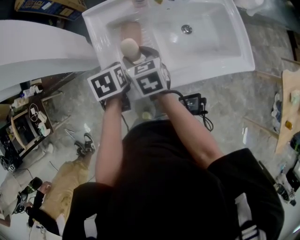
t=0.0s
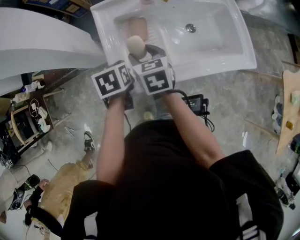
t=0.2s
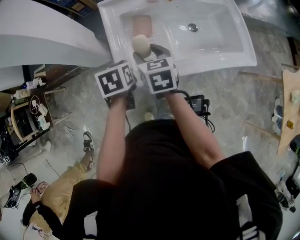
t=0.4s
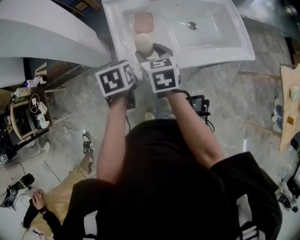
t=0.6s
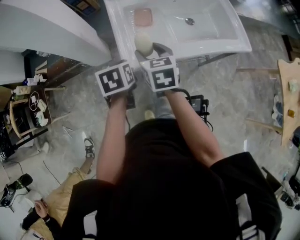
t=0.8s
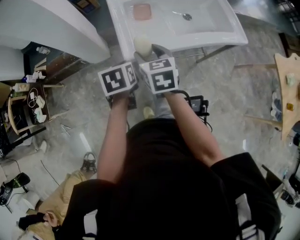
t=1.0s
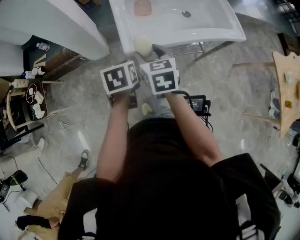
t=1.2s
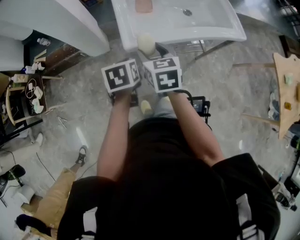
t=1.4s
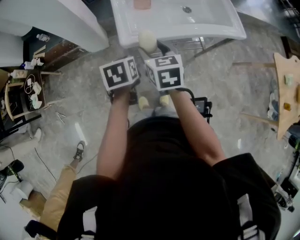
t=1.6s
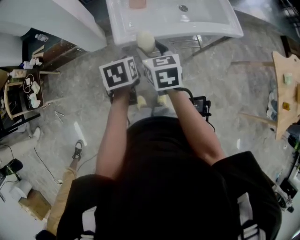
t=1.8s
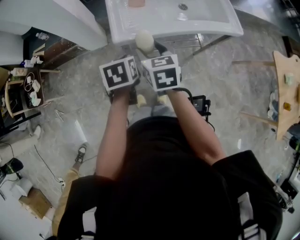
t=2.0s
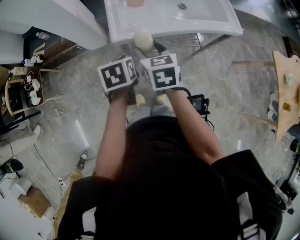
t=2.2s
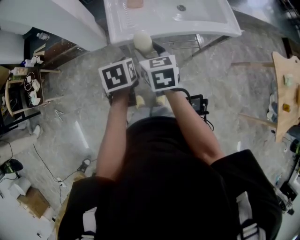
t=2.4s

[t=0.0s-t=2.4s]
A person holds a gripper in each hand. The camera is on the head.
t=0.0s to t=1.2s: The grippers both shift backward by roughly 25 cm.
t=1.2s to t=2.4s: The right gripper heads to the right, covering approximately 5 cm; the left gripper heads to the right and backward, covering about 10 cm.

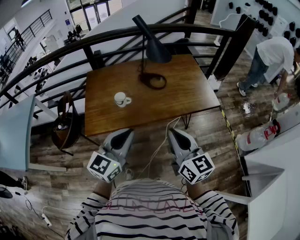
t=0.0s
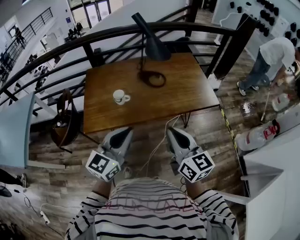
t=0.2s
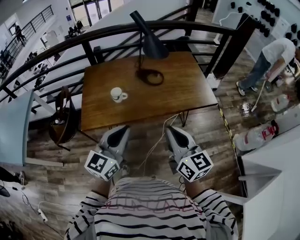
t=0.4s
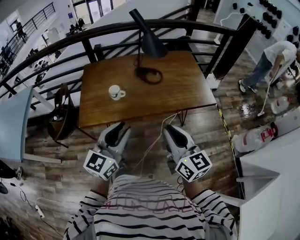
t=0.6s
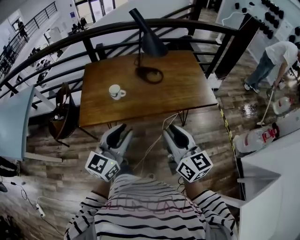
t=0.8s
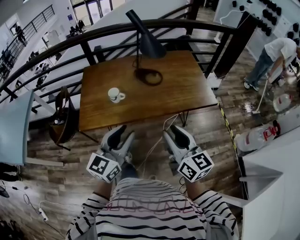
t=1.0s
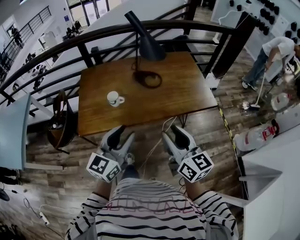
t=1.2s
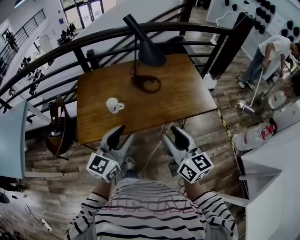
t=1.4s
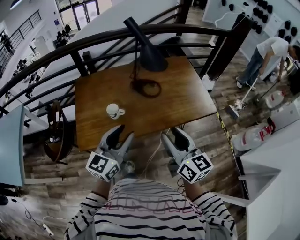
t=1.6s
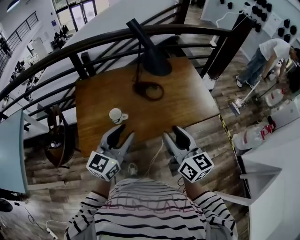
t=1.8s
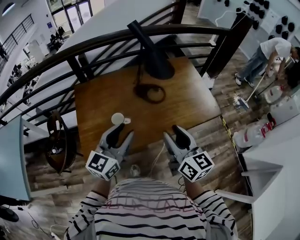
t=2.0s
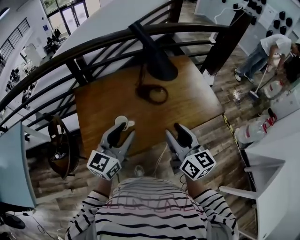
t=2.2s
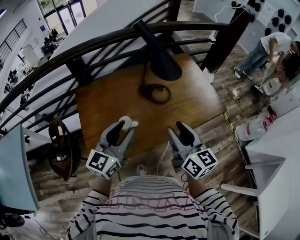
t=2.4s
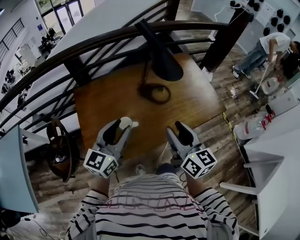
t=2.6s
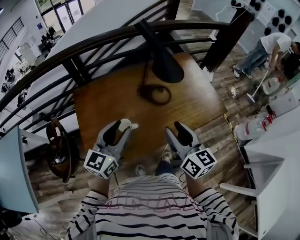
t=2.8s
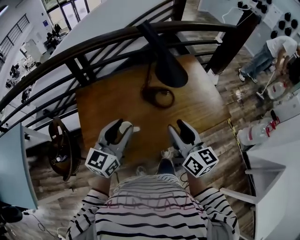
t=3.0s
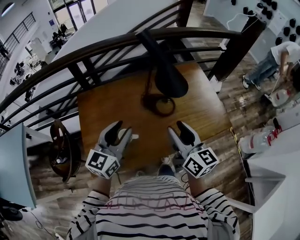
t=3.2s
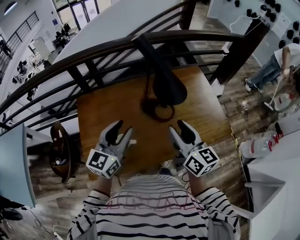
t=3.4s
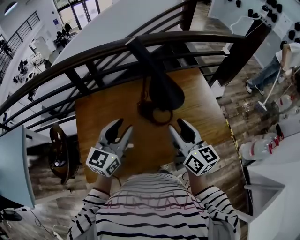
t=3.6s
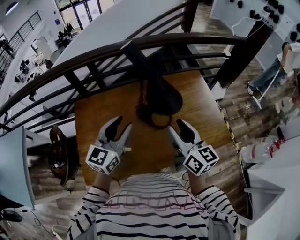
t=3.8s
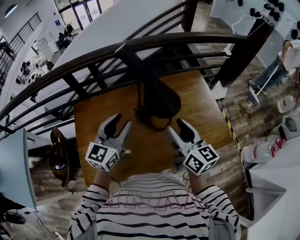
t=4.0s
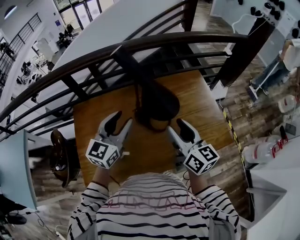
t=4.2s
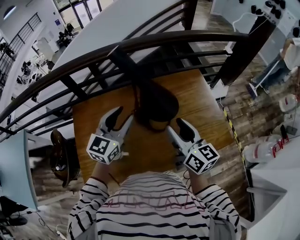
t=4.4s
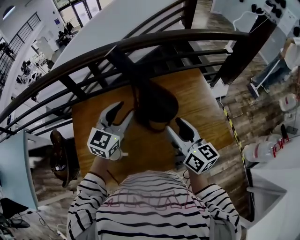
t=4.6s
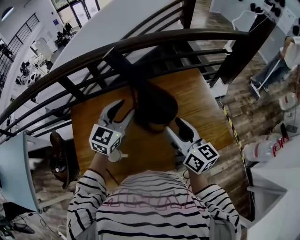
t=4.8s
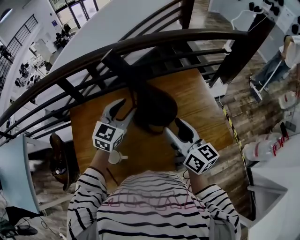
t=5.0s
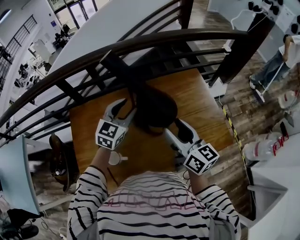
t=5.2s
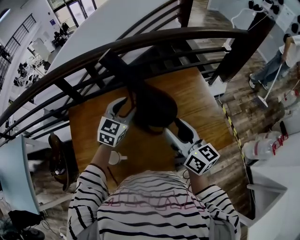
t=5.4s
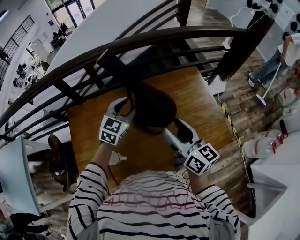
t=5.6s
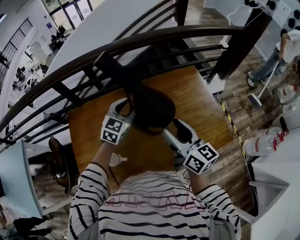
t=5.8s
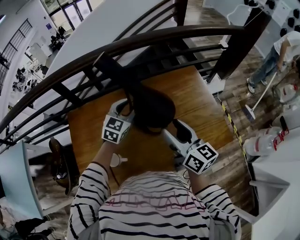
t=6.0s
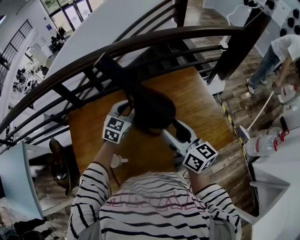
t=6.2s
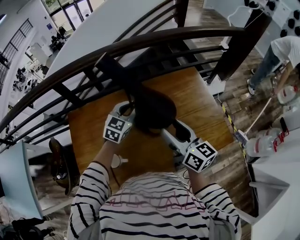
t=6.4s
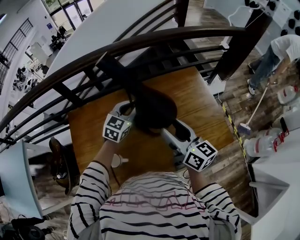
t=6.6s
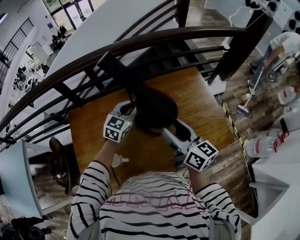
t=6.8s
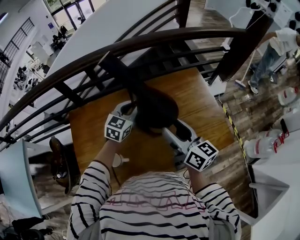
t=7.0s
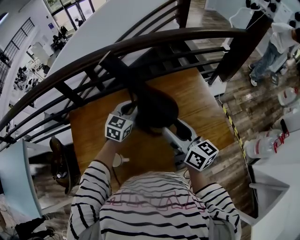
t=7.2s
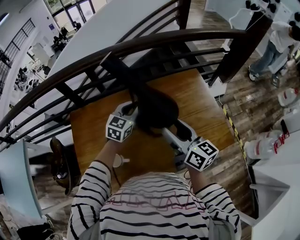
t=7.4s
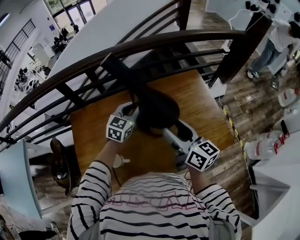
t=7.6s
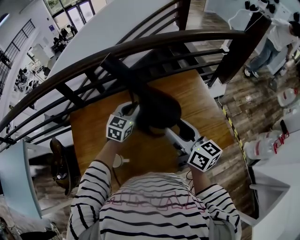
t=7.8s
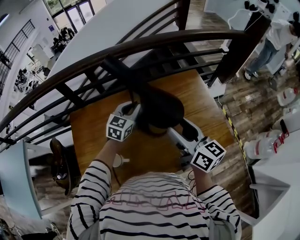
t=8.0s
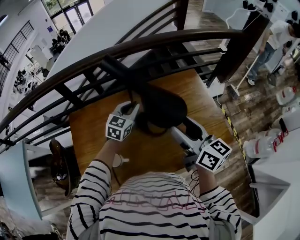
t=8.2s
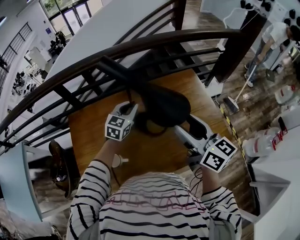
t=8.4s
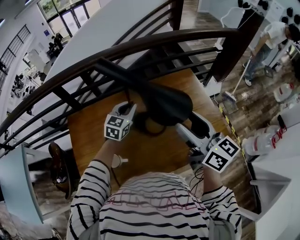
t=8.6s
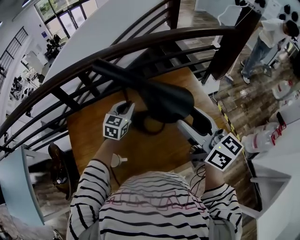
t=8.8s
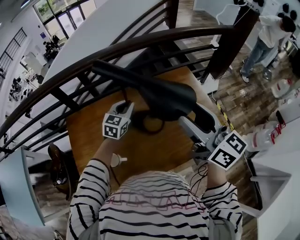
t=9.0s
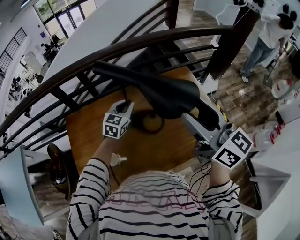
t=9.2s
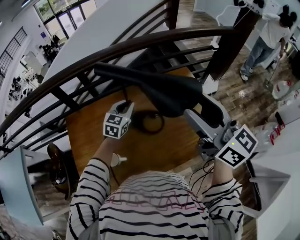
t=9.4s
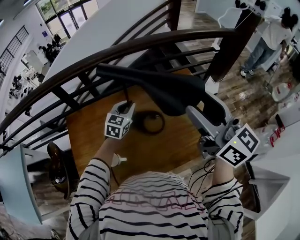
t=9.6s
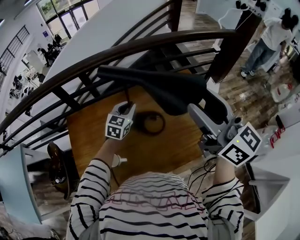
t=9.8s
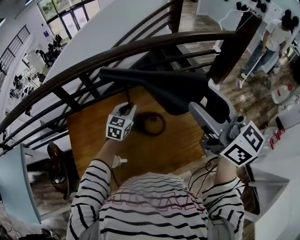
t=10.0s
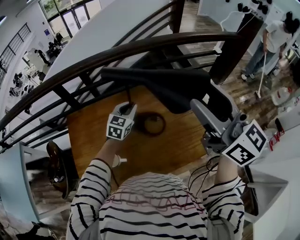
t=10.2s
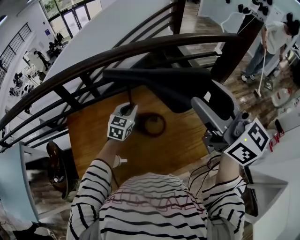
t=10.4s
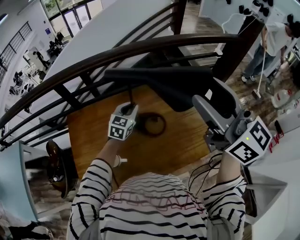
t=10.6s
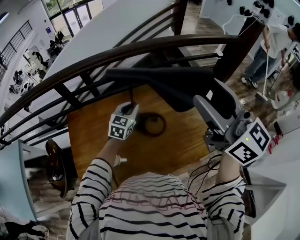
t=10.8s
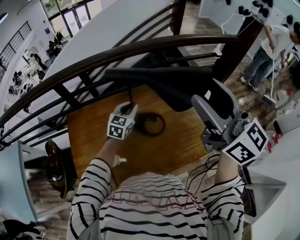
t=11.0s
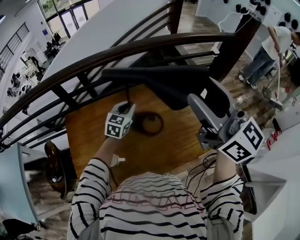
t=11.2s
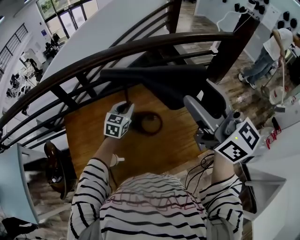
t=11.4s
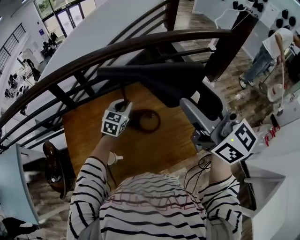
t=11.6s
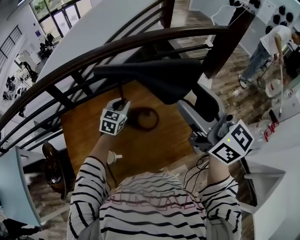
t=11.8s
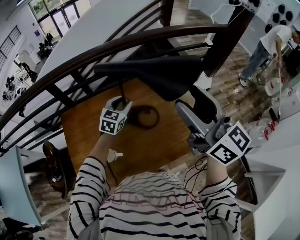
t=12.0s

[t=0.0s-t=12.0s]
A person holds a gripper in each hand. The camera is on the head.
t=0.0s to t=1.6s: The grippers both shift forward by roughly 10 cm. The left gripper opens; the right gripper opens its fingers.
t=1.6s to t=3.0s: Both grippers travel together forward and to the left, roughly 20 cm.
t=3.0s to t=4.4s: The two grippers go approximately 20 cm forward and to the right.
t=4.4s to t=6.0s: The left gripper travels forward and downward by approximately 15 cm.
t=6.0s to t=7.6s: The left gripper closes its fingers.
t=7.6s to t=9.0s: The right gripper shifts about 15 cm upward and to the right.
t=9.0s to t=10.4s: The right gripper is displaced upward by approximately 10 cm.
t=10.4s to t=12.0s: The left gripper opens up; the right gripper changes place by roughly 5 cm.

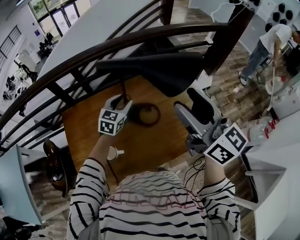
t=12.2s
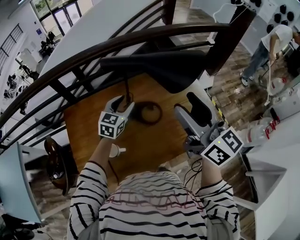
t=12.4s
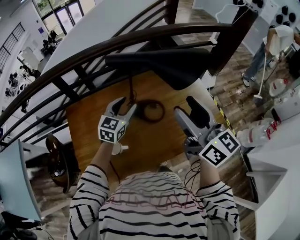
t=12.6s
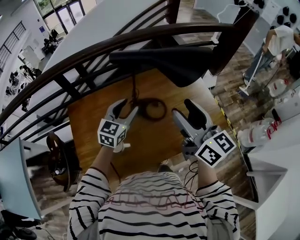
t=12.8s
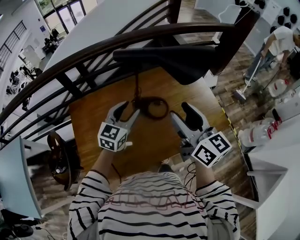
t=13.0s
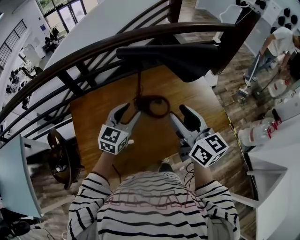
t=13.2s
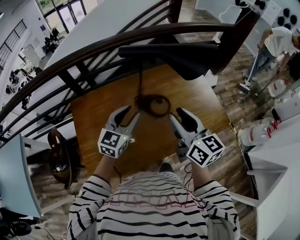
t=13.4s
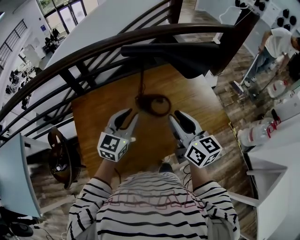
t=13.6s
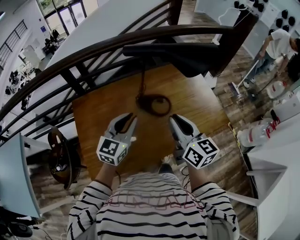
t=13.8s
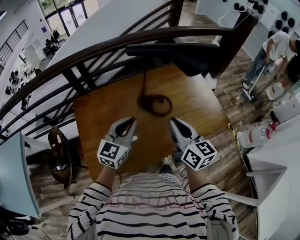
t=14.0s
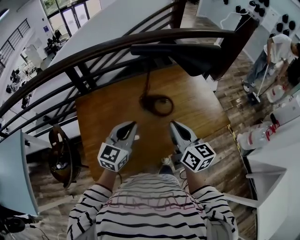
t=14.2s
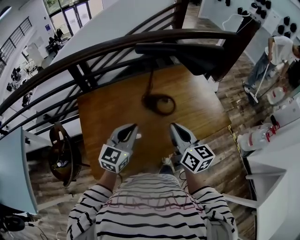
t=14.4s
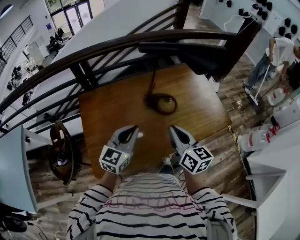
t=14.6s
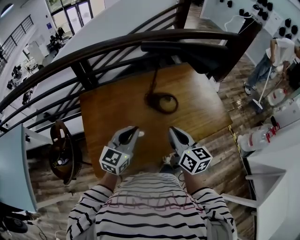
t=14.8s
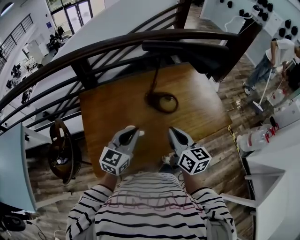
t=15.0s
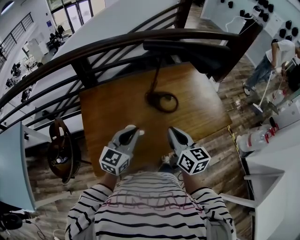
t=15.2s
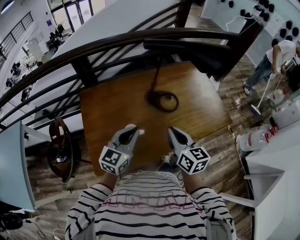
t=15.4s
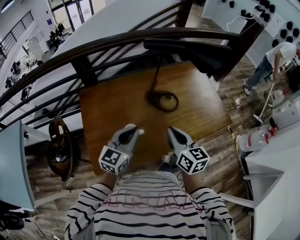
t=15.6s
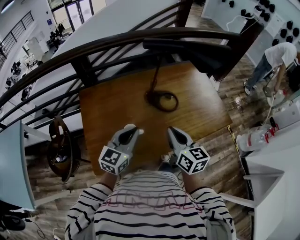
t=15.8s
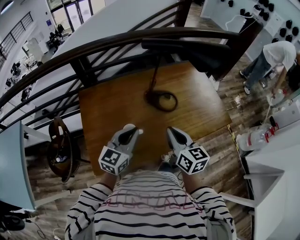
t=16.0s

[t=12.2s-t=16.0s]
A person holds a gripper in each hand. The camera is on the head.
t=12.2s to t=13.4s: The right gripper is displaced downward, to the left and backward by about 15 cm. The left gripper heads backward, covering approximately 15 cm.
t=13.4s to t=14.8s: The right gripper moves backward, downward and to the left, some 15 cm, and closes its fingers. The left gripper moves backward and to the left, about 15 cm, and closes up.
t=14.8s to t=16.0s: The grippers make only small movements.

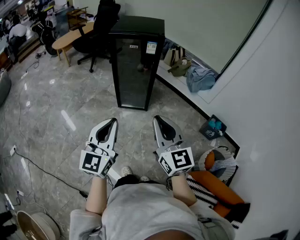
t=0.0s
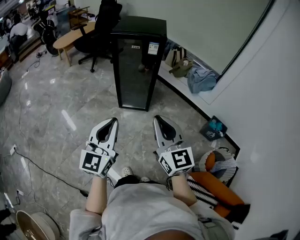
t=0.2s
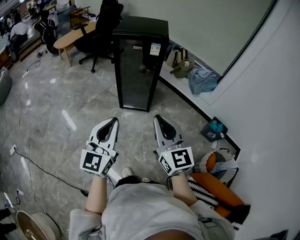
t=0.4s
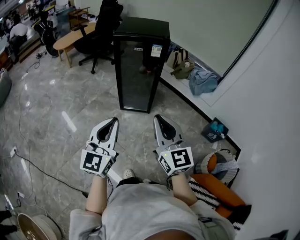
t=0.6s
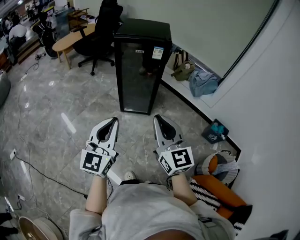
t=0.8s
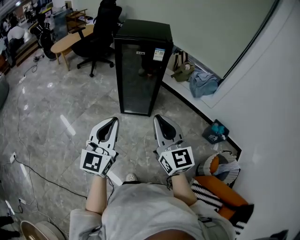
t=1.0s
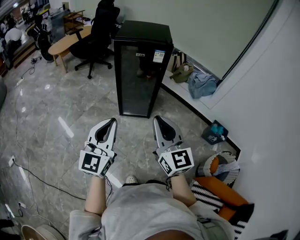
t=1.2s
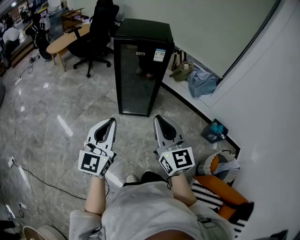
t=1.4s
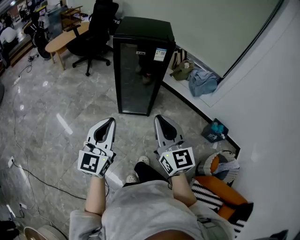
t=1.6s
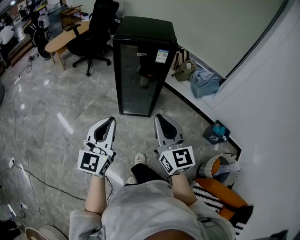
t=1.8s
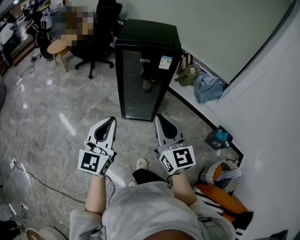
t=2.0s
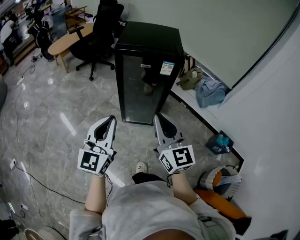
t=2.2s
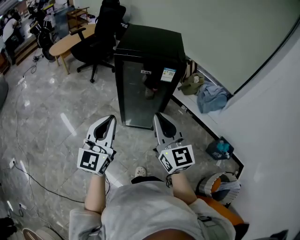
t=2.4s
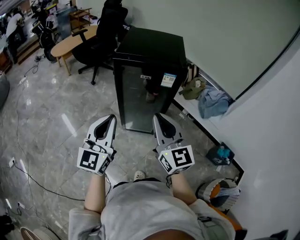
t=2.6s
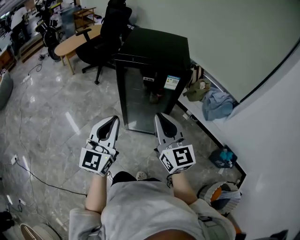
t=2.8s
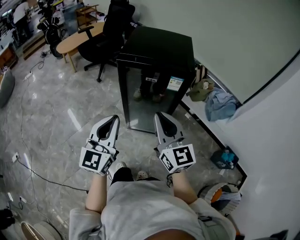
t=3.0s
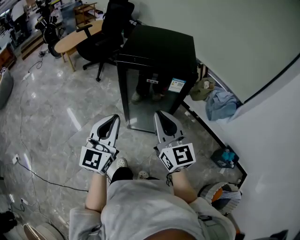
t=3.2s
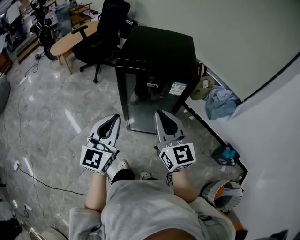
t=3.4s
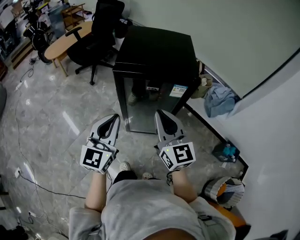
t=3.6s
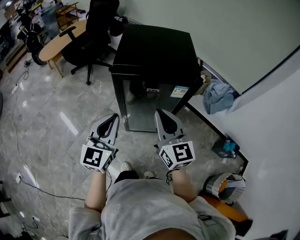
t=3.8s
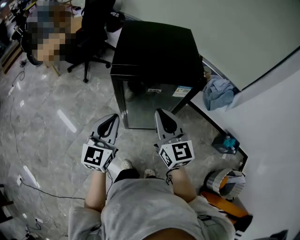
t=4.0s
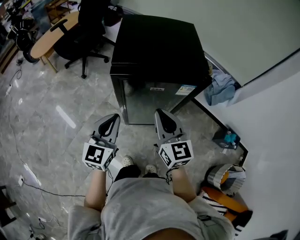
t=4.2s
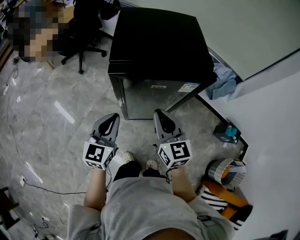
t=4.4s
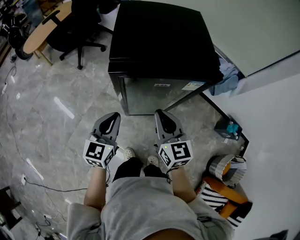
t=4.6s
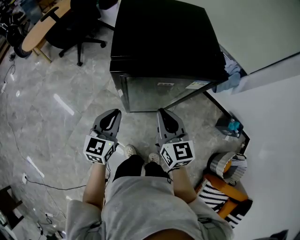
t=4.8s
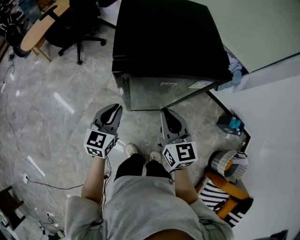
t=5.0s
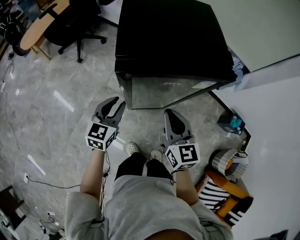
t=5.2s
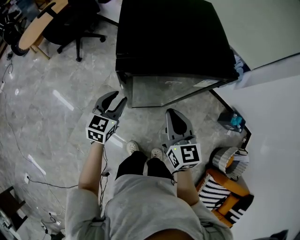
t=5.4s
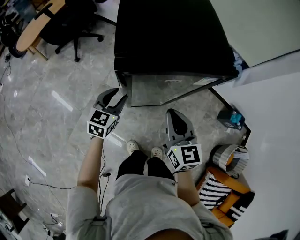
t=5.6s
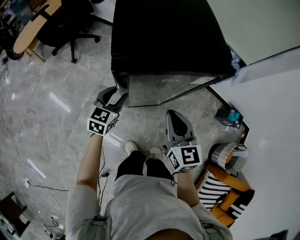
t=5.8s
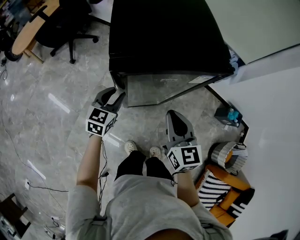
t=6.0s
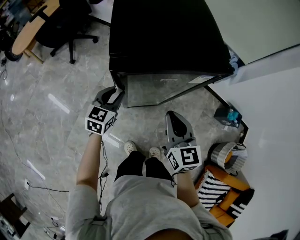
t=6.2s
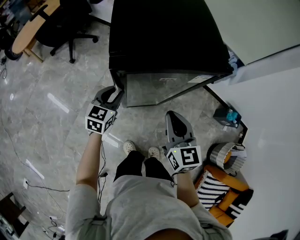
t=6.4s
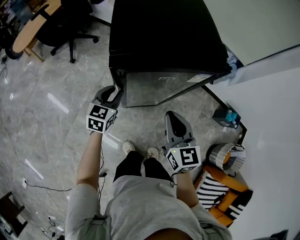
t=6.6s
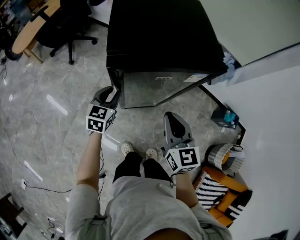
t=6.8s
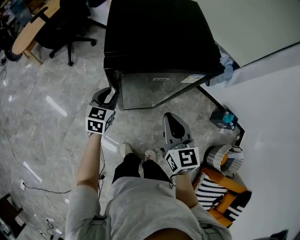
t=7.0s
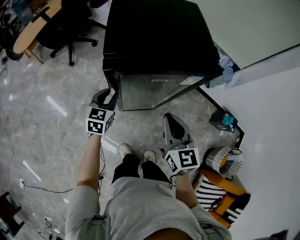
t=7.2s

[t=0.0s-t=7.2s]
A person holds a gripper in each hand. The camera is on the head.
t=0.0s to t=1.4s: Both grippers travel together forward and to the left, some 10 cm.
t=1.4s to t=2.8s: The grippers both shift forward by roughly 25 cm.
t=2.8s to t=4.4s: The two grippers go roughly 25 cm forward and downward. The left gripper changes its angle by roughly 20 degrees. Meanwhile the right gripper turns by roughly 20 degrees.
t=4.4s to t=5.8s: The left gripper moves downward and forward, roughly 15 cm, rotates approximately 20 degrees, and opens up.
t=5.8s to t=7.2s: The grippers move only a little.
